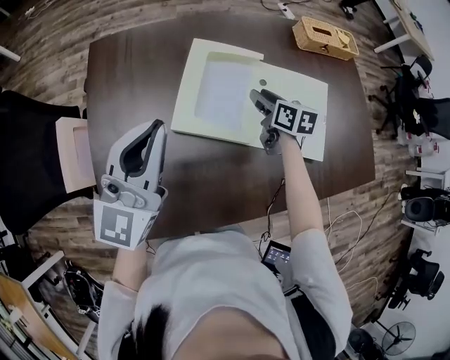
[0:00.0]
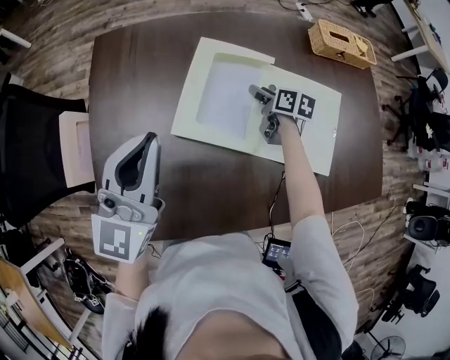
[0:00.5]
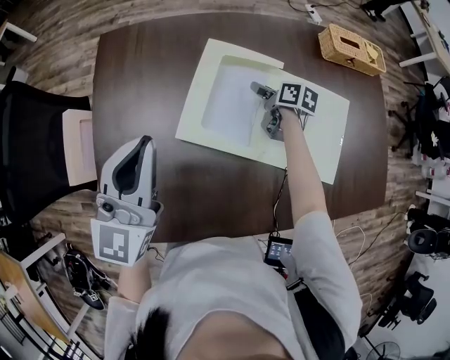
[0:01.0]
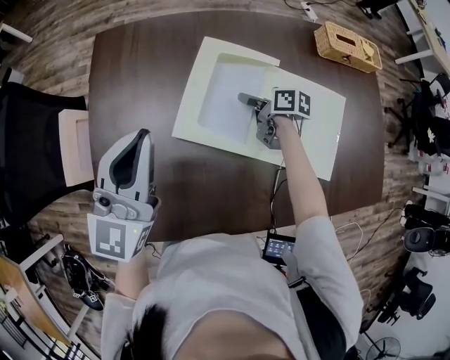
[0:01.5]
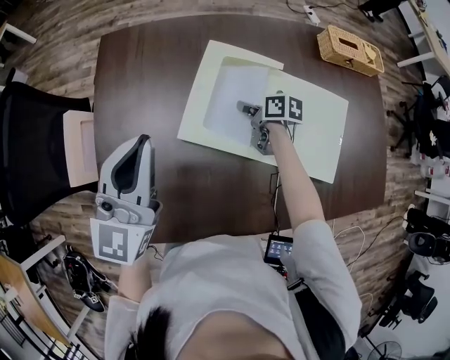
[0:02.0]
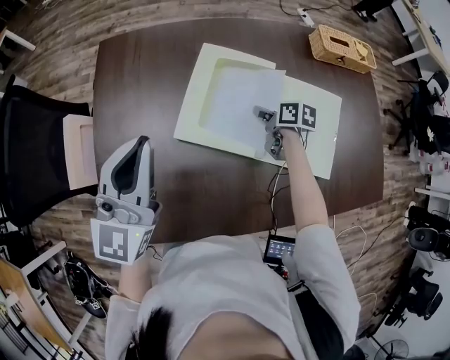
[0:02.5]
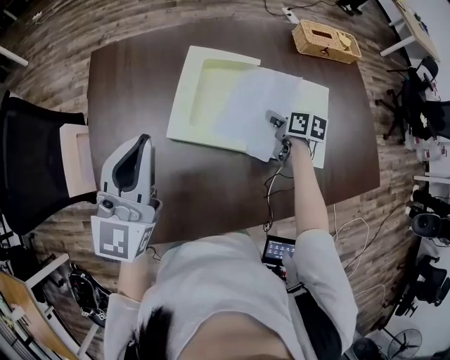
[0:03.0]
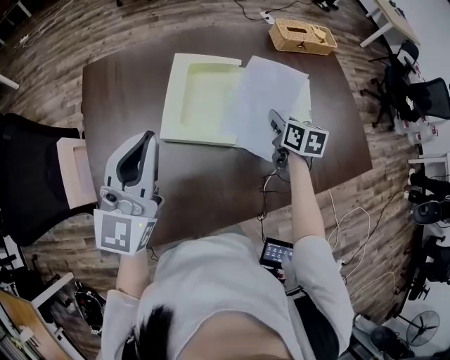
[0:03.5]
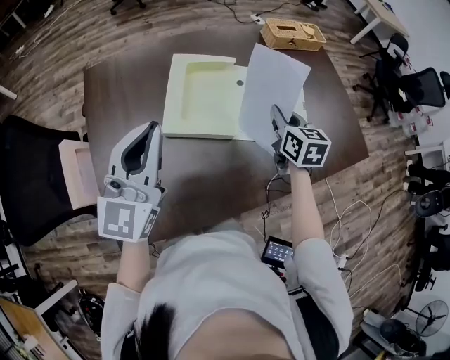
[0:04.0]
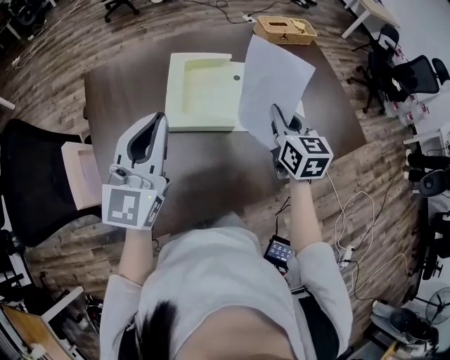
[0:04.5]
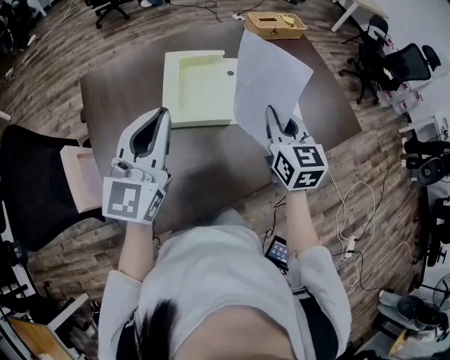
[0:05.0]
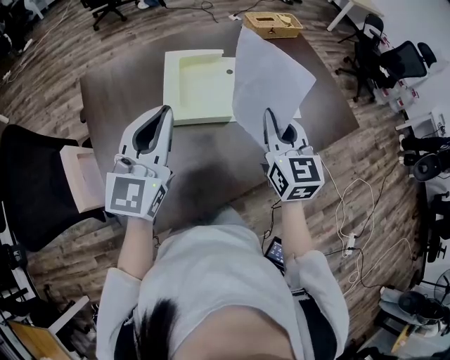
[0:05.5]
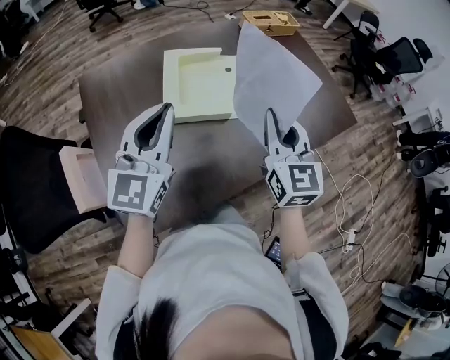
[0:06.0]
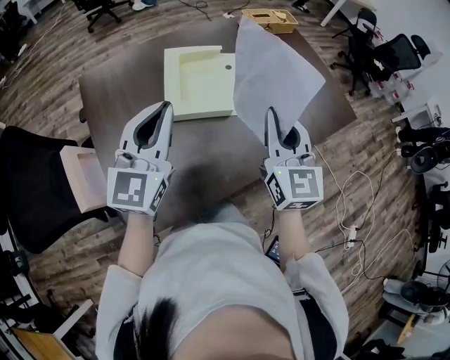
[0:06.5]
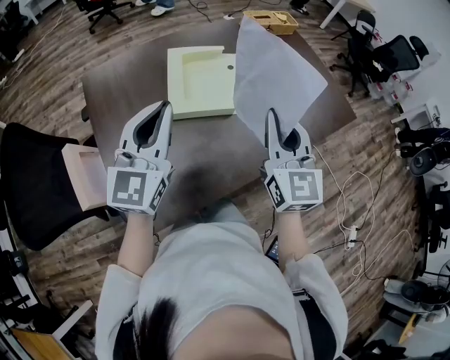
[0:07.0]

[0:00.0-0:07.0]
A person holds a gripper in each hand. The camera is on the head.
0:00.0 to 0:02.0: The right gripper is displaced downward and to the left by about 10 cm, changes its angle by some 30 degrees, and closes its fingers.
0:02.0 to 0:03.5: The right gripper ends up some 25 cm from where it was, and turns by approximately 40 degrees. The left gripper shifts by roughly 10 cm.
0:03.5 to 0:05.0: The right gripper heads backward and upward, covering roughly 25 cm, and turns by roughly 30 degrees. The left gripper travels backward by roughly 5 cm.
0:05.0 to 0:07.0: The right gripper moves backward and upward, some 10 cm; the left gripper shifts by roughly 5 cm.

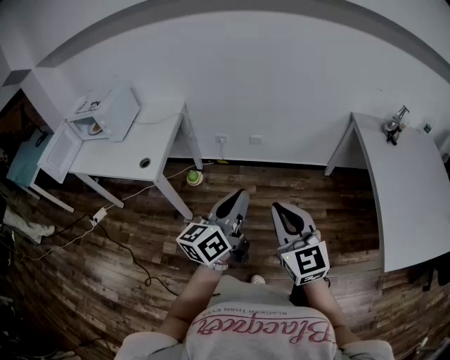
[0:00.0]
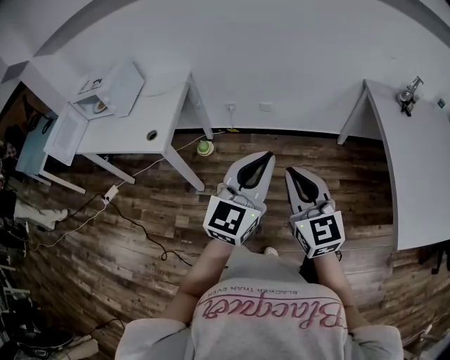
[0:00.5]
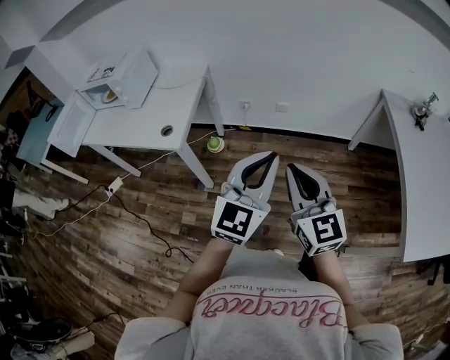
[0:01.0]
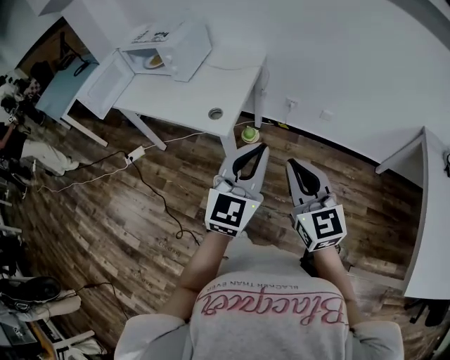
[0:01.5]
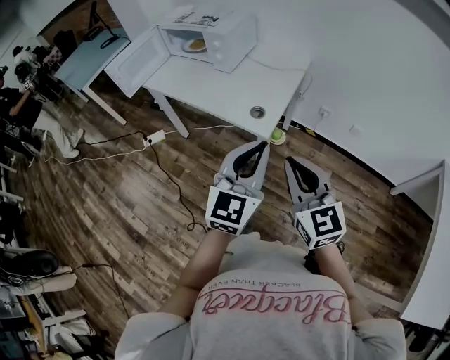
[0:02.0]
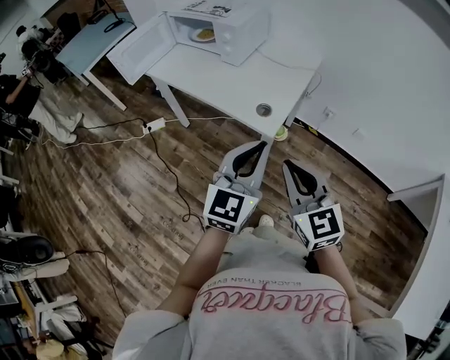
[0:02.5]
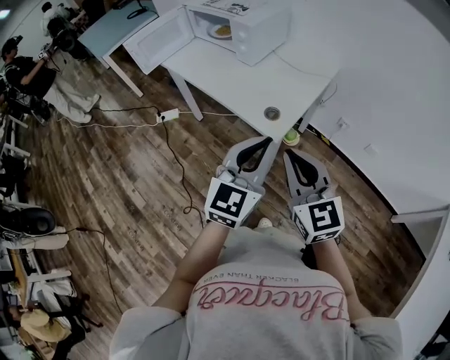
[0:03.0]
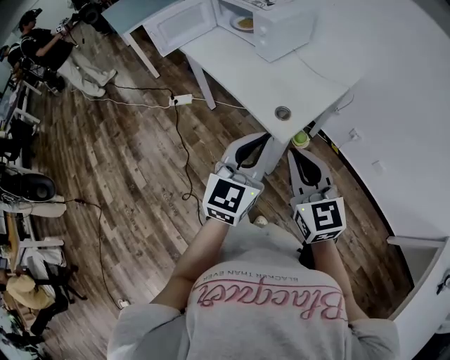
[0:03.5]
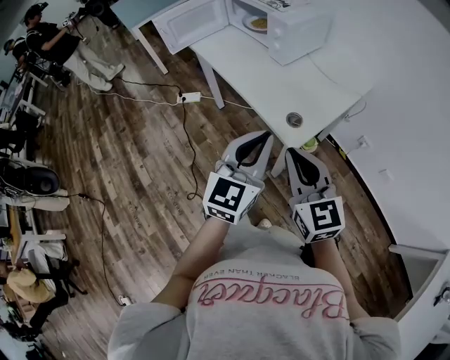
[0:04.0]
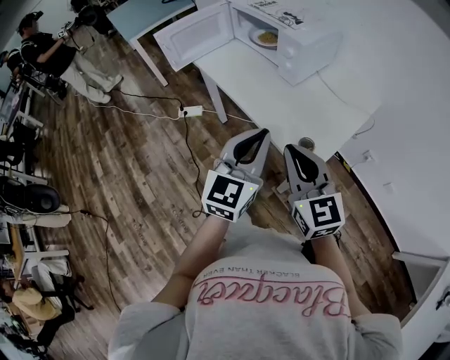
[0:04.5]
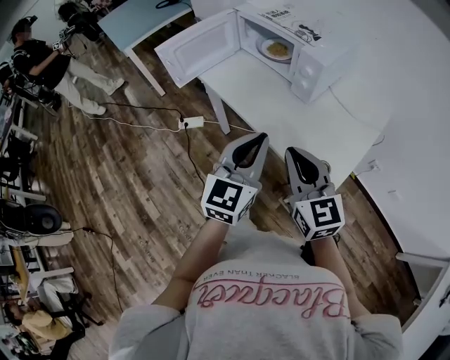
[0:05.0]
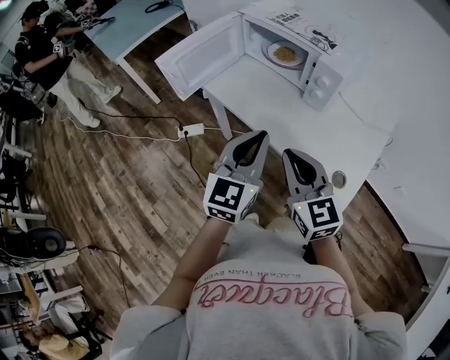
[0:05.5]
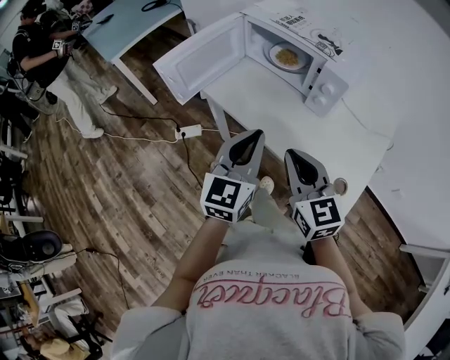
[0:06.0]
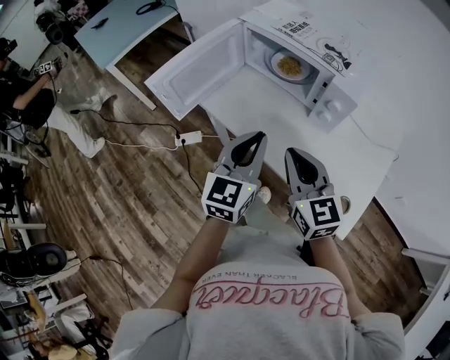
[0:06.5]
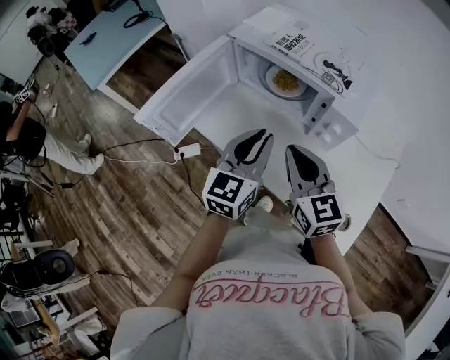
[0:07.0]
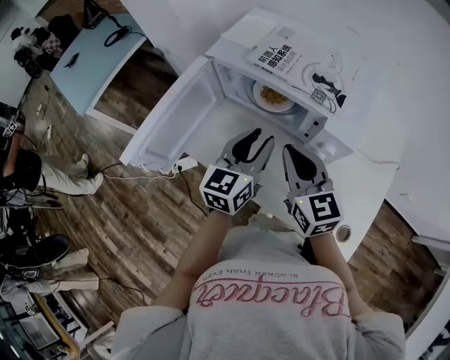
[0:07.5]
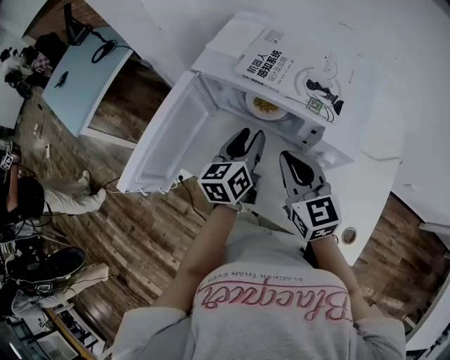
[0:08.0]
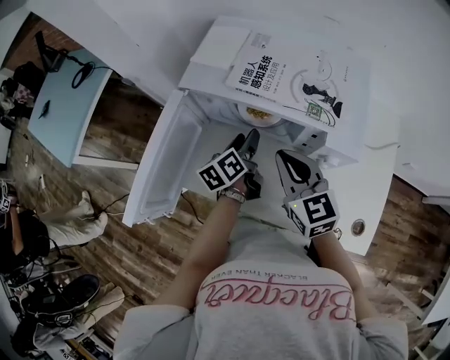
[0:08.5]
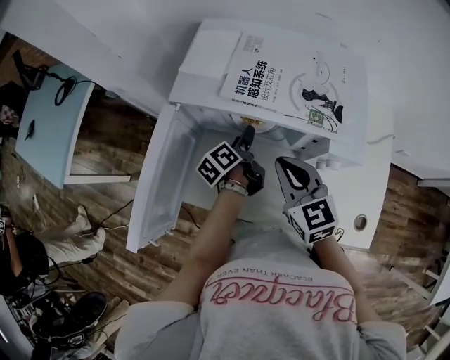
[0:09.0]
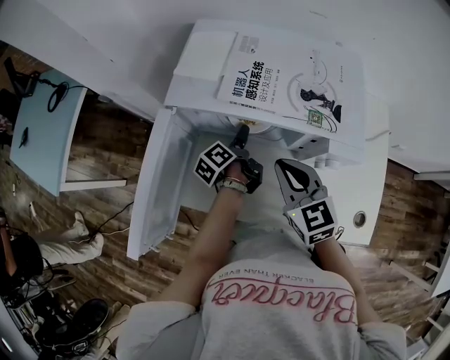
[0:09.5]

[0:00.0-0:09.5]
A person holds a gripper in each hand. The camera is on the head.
0:00.0 to 0:02.0: The left gripper ends up about 40 cm from where it was, and rotates around the line of its fingers by roughly 40 degrees, clockwise from behind, while the right gripper moves some 40 cm, and changes its angle by approximately 20 degrees.
0:02.0 to 0:04.0: The grippers both shift forward by about 10 cm. The right gripper swivels approximately 20 degrees. Meanwhile the left gripper swivels about 20 degrees.
0:04.0 to 0:05.5: The grippers both shift forward and to the left by approximately 30 cm.
0:05.5 to 0:07.5: The two grippers go roughly 25 cm forward. The left gripper changes its angle by roughly 20 degrees, and opens its fingers.
0:07.5 to 0:09.5: The right gripper travels forward and downward by about 10 cm, while the left gripper heads downward and forward, covering approximately 25 cm, twists approximately 60 degrees counterclockwise, seen from behind, and opens.

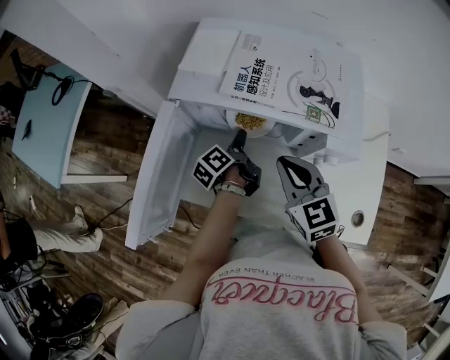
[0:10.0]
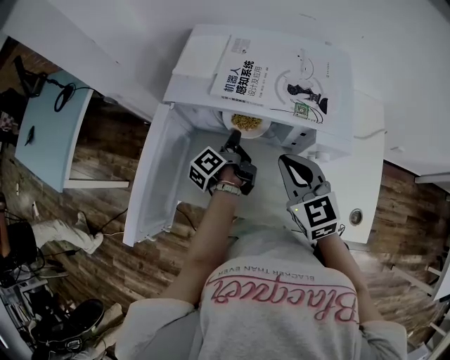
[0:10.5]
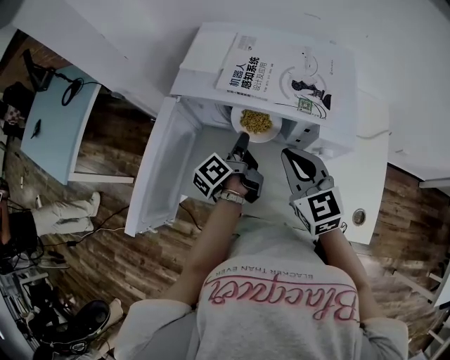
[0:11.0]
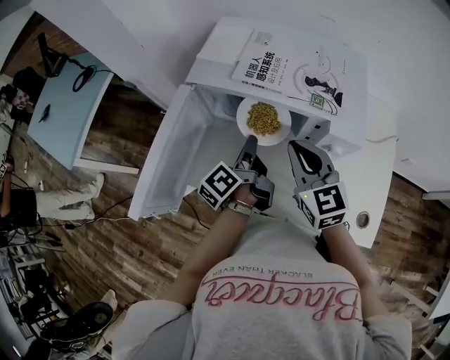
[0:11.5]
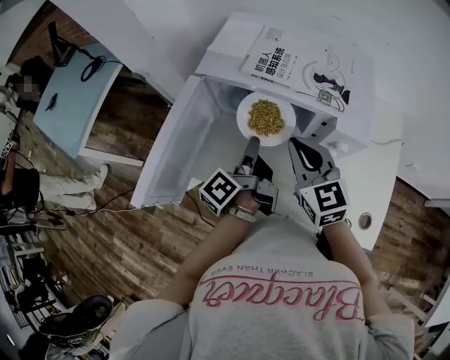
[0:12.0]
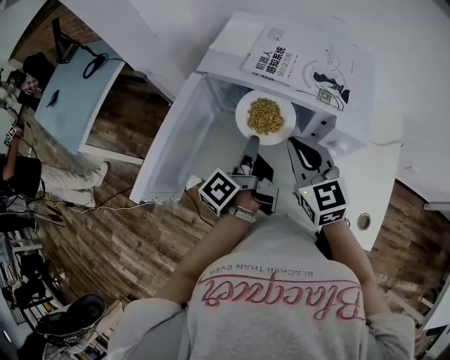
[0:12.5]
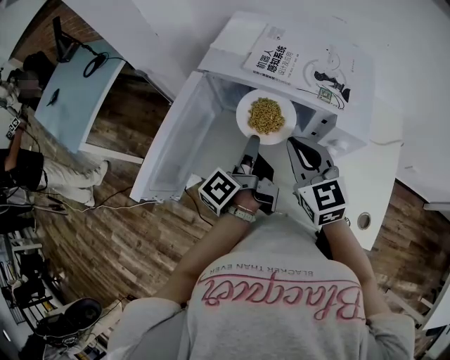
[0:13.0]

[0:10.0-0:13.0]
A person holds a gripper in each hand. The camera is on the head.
0:10.0 to 0:11.5: The left gripper shifts some 10 cm upward and backward, and closes up.
0:11.5 to 0:13.0: There are only small adjustments of the grippers.

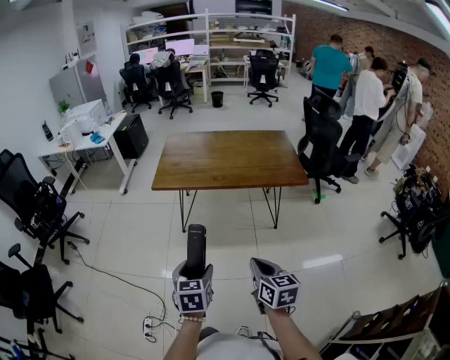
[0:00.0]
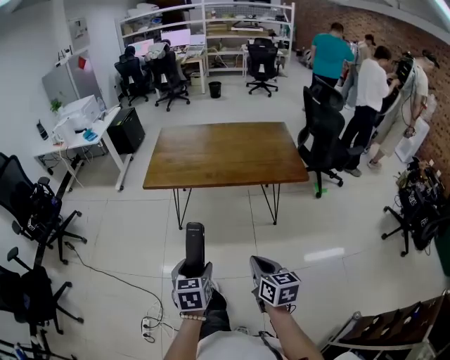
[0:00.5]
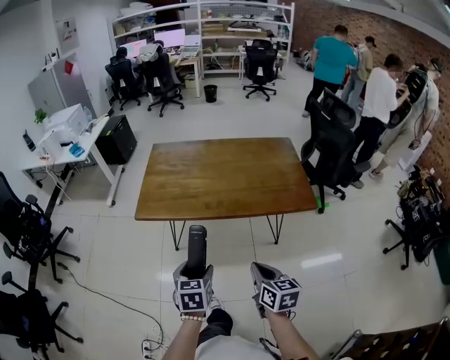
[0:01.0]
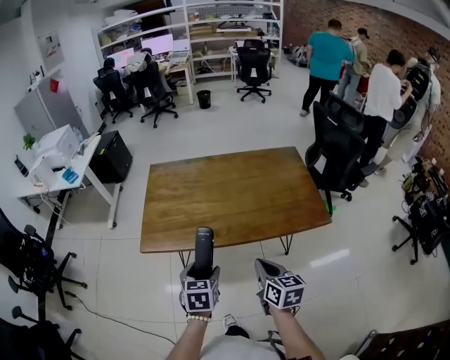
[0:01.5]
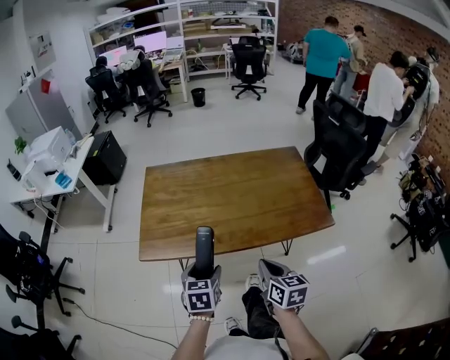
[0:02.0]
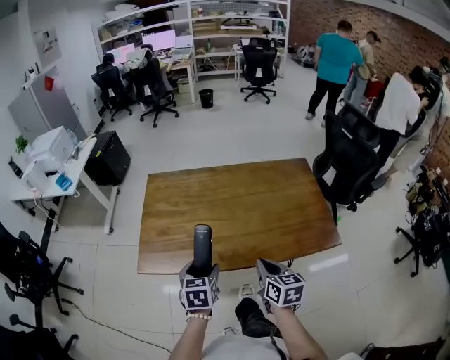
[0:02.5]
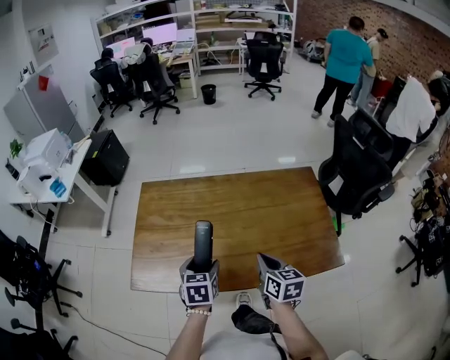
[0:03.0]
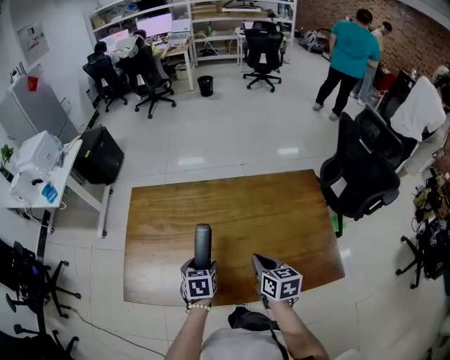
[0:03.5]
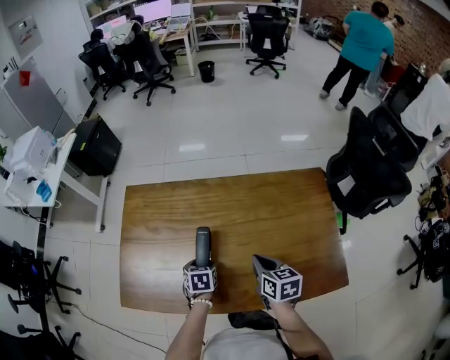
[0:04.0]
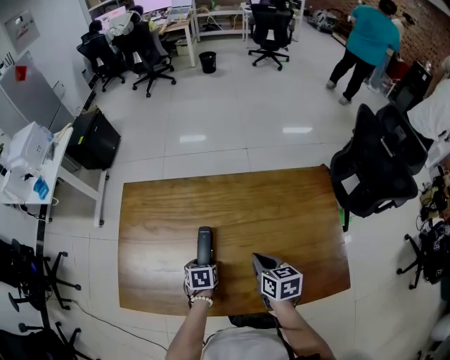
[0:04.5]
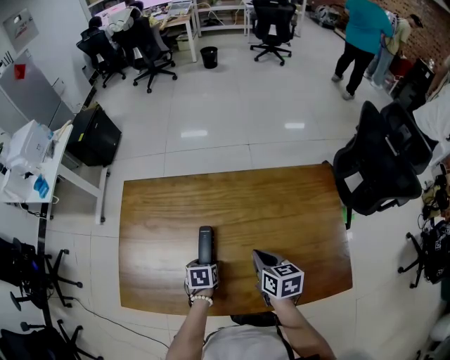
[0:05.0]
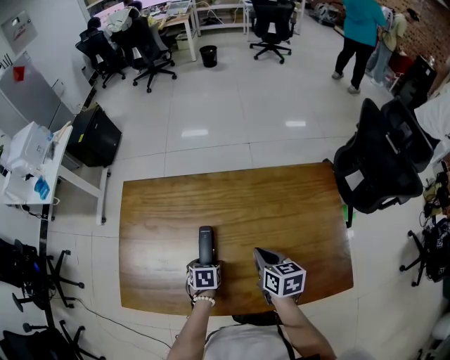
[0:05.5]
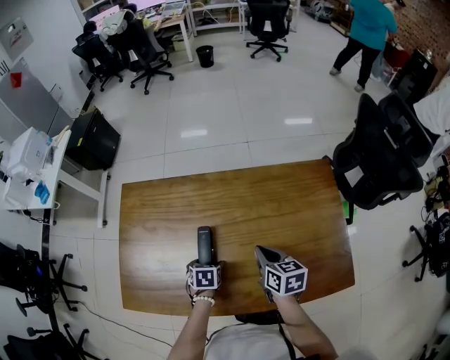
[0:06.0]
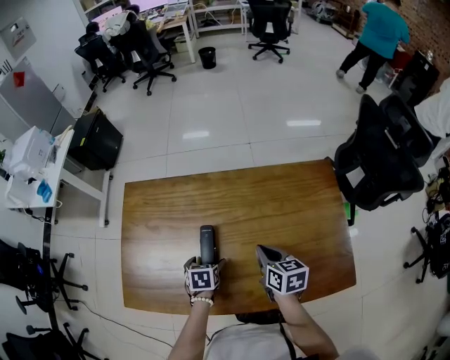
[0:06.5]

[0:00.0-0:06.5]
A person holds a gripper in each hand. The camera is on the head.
0:00.0 to 0:02.0: The two grippers go about 40 cm forward.
0:02.0 to 0:04.5: The left gripper shifts approximately 35 cm forward and downward, and changes its angle by approximately 30 degrees, while the right gripper heads forward, covering approximately 30 cm.
0:04.5 to 0:06.5: The grippers move only a little.
